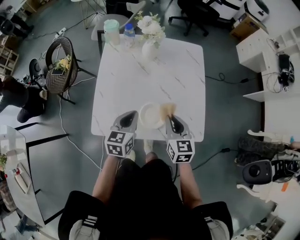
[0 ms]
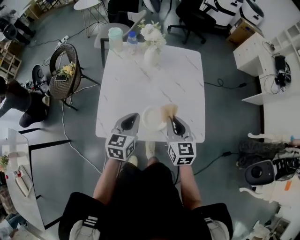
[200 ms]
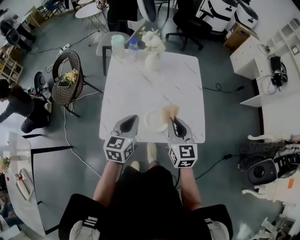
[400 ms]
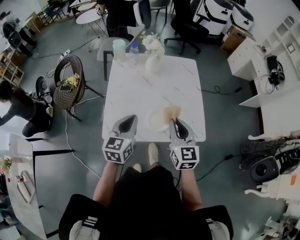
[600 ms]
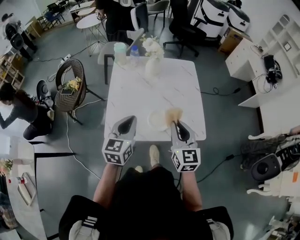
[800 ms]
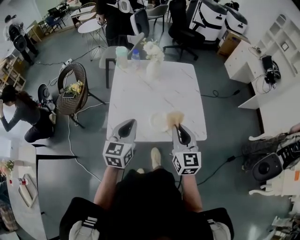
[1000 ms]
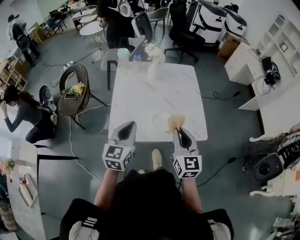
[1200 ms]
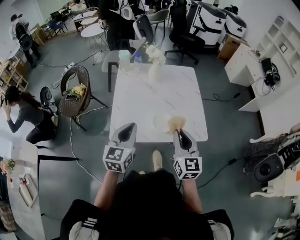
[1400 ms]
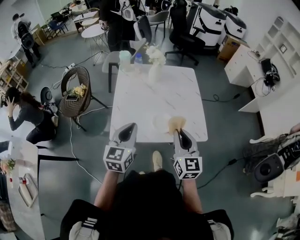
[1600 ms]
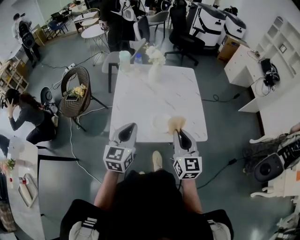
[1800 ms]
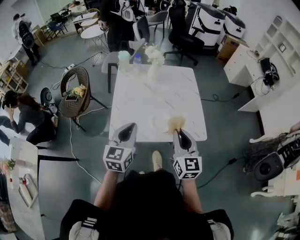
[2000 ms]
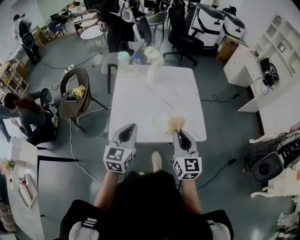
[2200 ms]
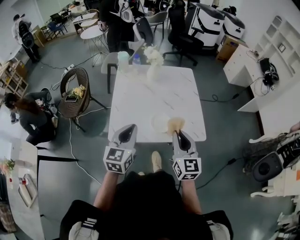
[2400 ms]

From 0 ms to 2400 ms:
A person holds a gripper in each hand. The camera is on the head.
From 0 ms to 1200 ms: The left gripper goes roughly 20 cm upward, backward and to the left. Meanwhile the right gripper moves backward and upward, about 20 cm, and changes its angle by roughly 20 degrees.
From 1200 ms to 2400 ms: The grippers make only small movements.

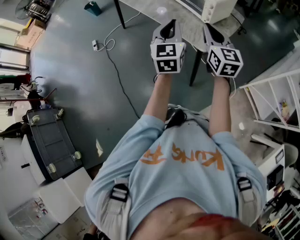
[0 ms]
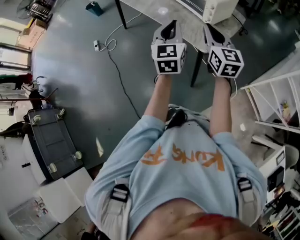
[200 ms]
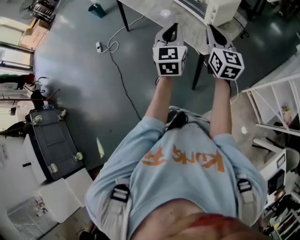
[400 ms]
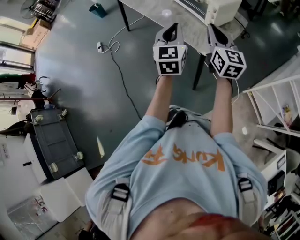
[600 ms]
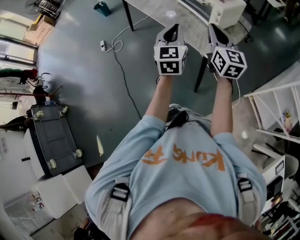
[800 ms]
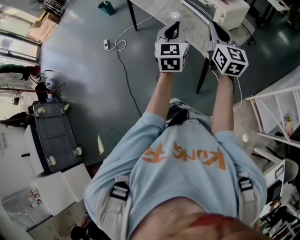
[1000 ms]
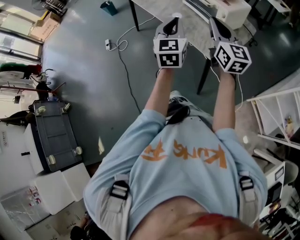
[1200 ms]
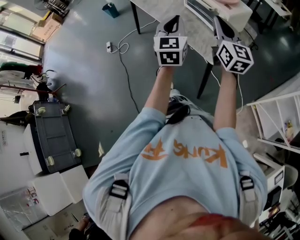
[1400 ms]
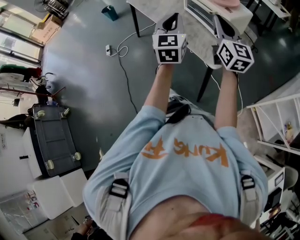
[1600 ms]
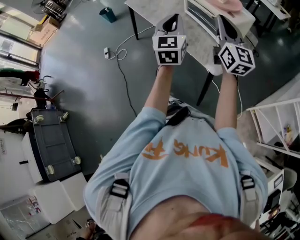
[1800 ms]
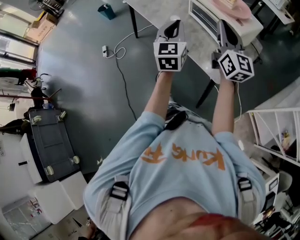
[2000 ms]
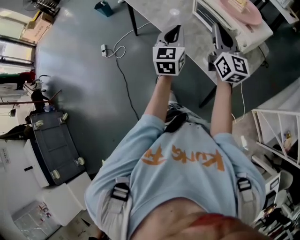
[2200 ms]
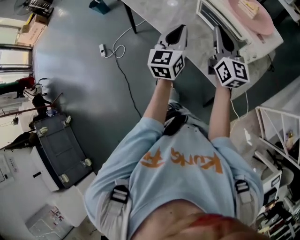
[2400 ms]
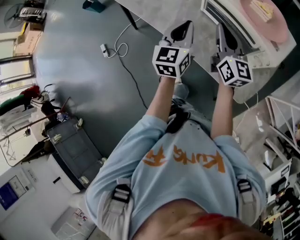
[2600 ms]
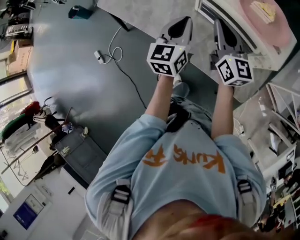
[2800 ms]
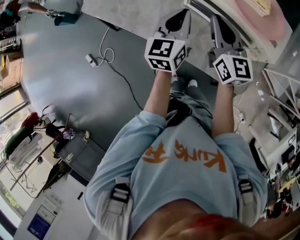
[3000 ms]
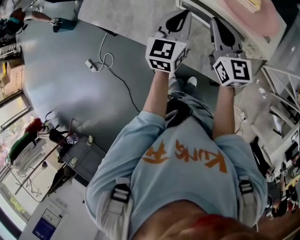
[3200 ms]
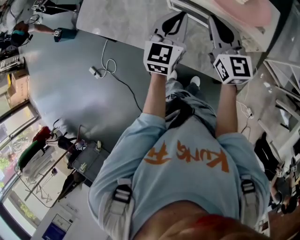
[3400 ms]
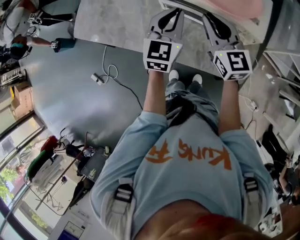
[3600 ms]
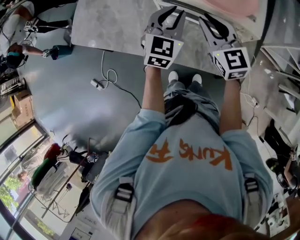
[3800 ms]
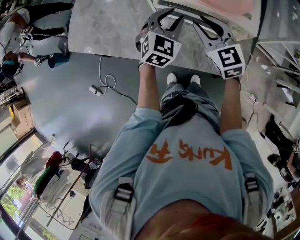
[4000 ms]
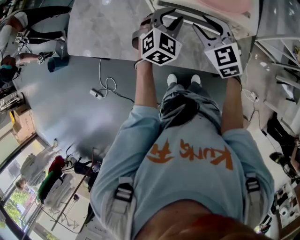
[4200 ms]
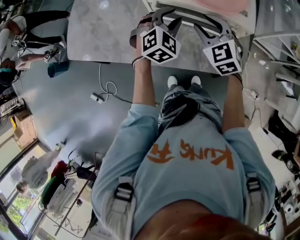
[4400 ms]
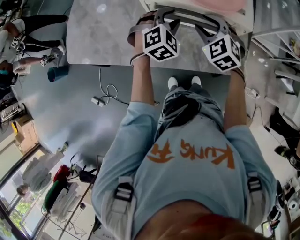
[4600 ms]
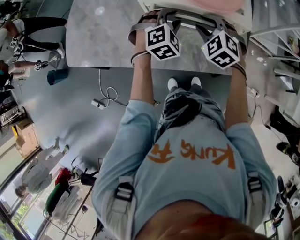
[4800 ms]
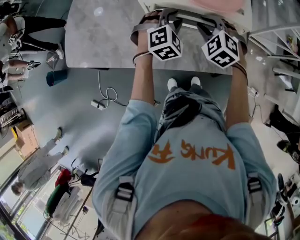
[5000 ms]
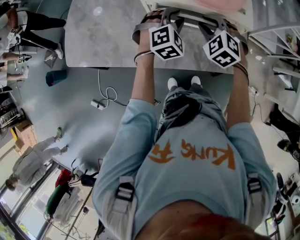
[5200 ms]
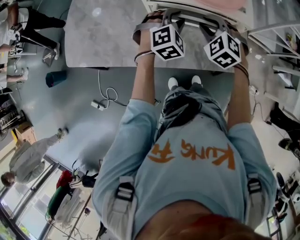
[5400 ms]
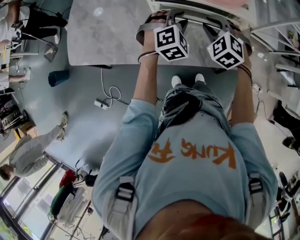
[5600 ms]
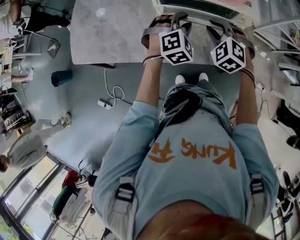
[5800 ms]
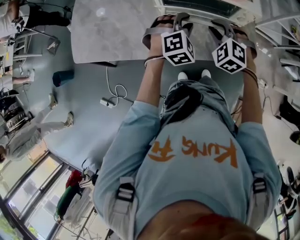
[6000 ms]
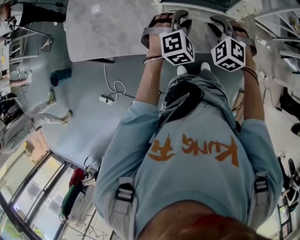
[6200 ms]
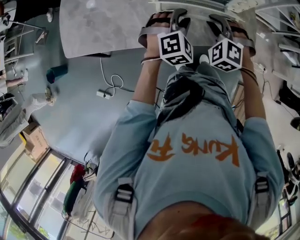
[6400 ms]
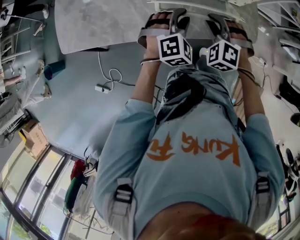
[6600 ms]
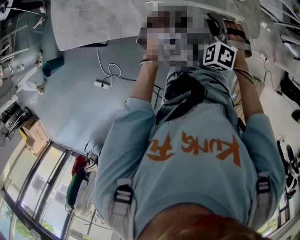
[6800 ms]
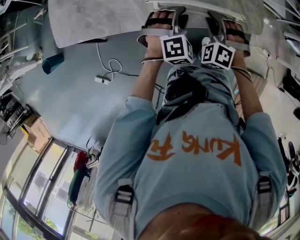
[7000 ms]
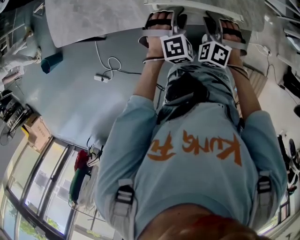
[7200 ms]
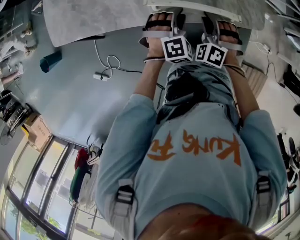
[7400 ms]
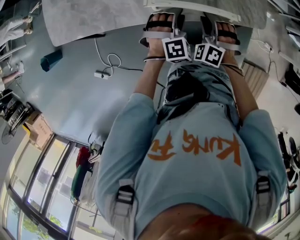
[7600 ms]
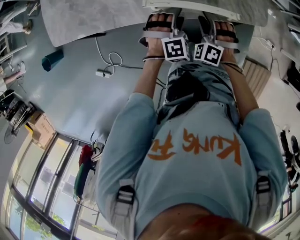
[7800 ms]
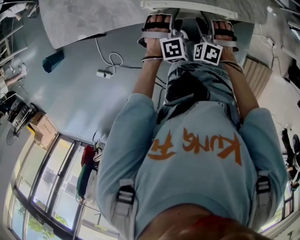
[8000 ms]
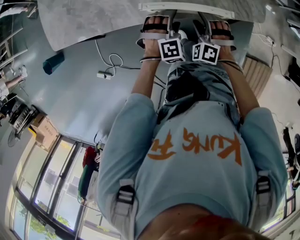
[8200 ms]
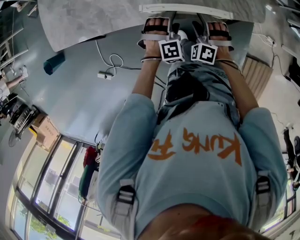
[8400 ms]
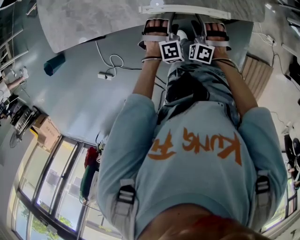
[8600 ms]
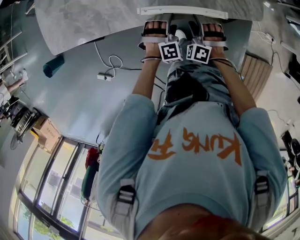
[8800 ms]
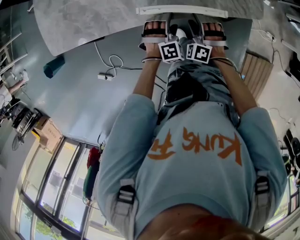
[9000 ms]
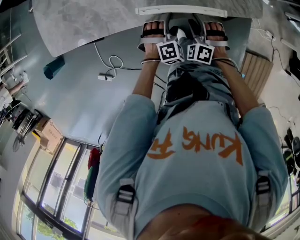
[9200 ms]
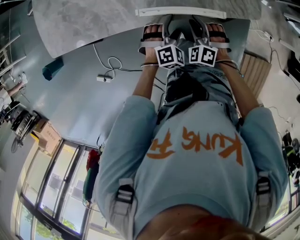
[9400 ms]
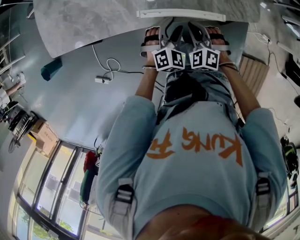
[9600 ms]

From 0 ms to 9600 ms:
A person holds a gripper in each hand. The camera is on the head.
From 0 ms to 1600 ms: The right gripper heads forward and upward, covering about 10 cm; the left gripper is displaced forward by roughly 5 cm.
From 1600 ms to 3200 ms: The left gripper ends up roughly 40 cm from where it was, and rotates about 40 degrees. The right gripper ends up roughly 40 cm from where it was, and changes its angle by some 20 degrees.
From 3200 ms to 4800 ms: The left gripper heads downward and to the right, covering some 10 cm, rolls clockwise, seen from behind, by roughly 60 degrees, and opens up. Meanwhile the right gripper heads downward, covering approximately 5 cm, angles its fingers downward, by some 40 degrees, and opens its fingers.
From 4800 ms to 6400 ms: The left gripper shifts some 10 cm backward; the right gripper goes roughly 10 cm backward and downward.
From 6400 ms to 8000 ms: The two grippers go some 20 cm downward and backward. The left gripper opens. The right gripper opens.
From 8000 ms to 9600 ms: The left gripper reaches approximately 5 cm downward, then returns, and turns by some 30 degrees. The right gripper closes its fingers.

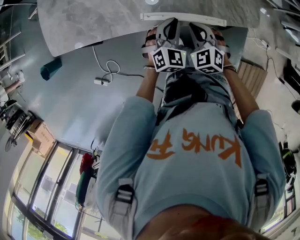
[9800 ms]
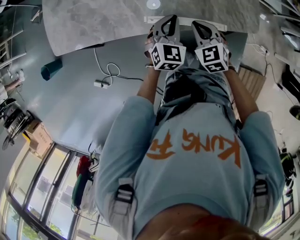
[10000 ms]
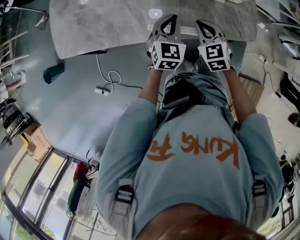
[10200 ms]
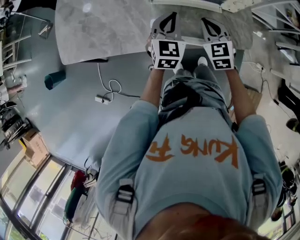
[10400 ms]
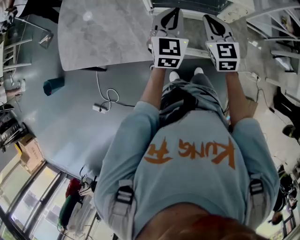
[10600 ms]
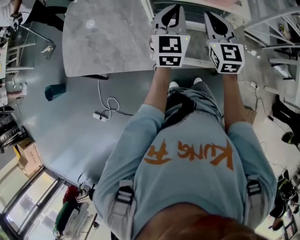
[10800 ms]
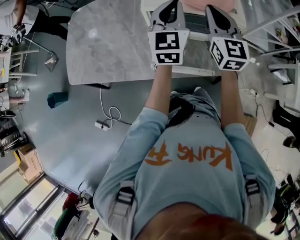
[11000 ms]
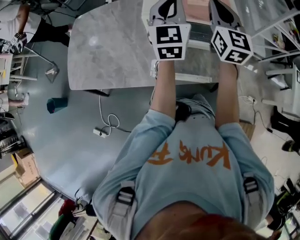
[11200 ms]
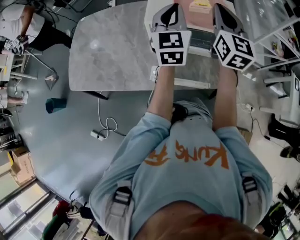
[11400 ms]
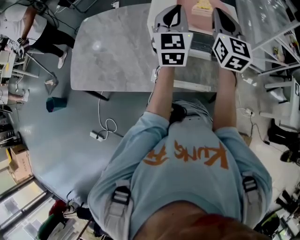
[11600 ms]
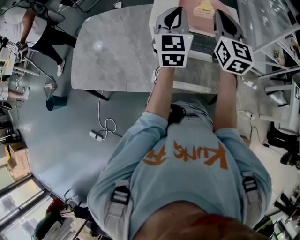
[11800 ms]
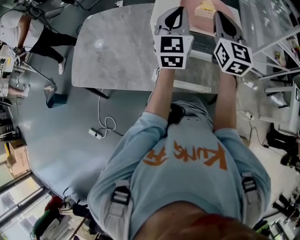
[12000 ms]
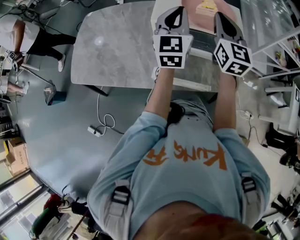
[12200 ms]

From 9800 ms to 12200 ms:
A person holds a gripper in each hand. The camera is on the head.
From 9800 ms to 11000 ms: Both grippers move upward and forward, some 35 cm. The right gripper tips its fingers upward by approximately 40 degrees. The left gripper tilts its fingers roughly 30 degrees upward.

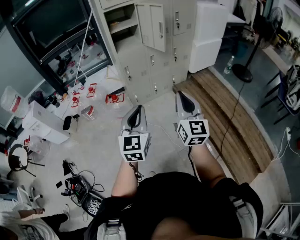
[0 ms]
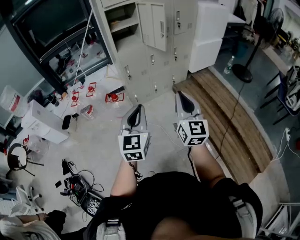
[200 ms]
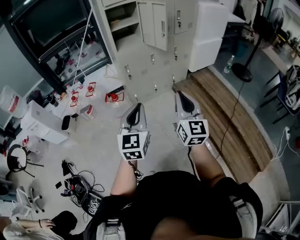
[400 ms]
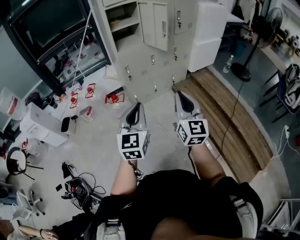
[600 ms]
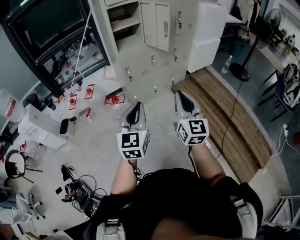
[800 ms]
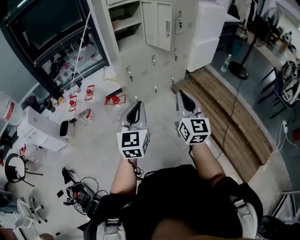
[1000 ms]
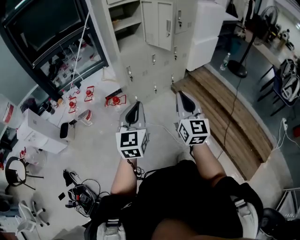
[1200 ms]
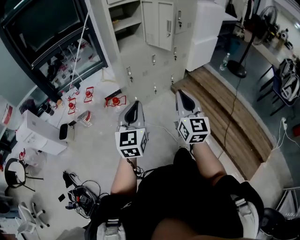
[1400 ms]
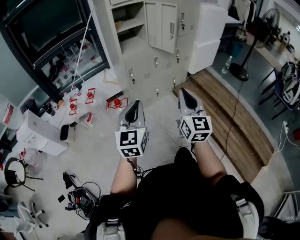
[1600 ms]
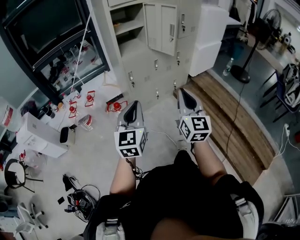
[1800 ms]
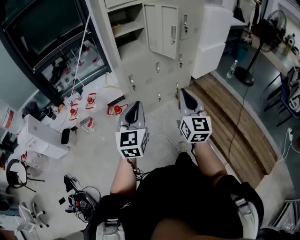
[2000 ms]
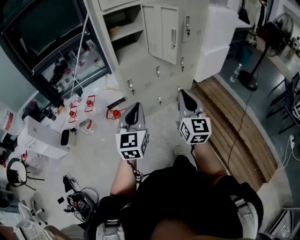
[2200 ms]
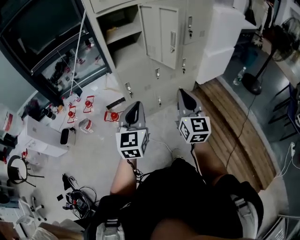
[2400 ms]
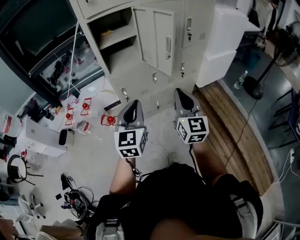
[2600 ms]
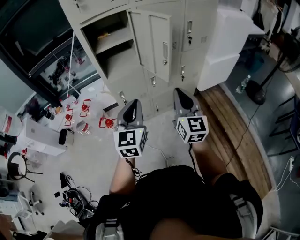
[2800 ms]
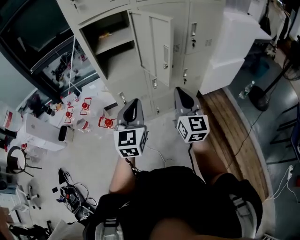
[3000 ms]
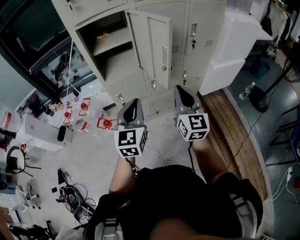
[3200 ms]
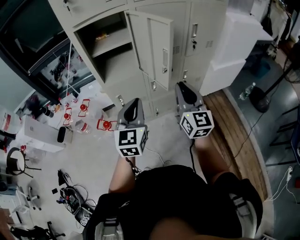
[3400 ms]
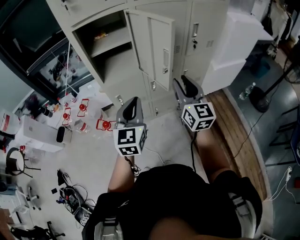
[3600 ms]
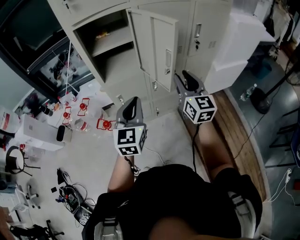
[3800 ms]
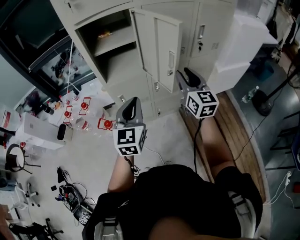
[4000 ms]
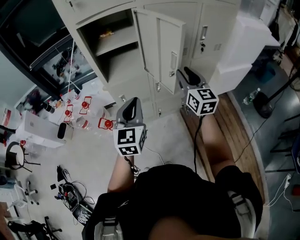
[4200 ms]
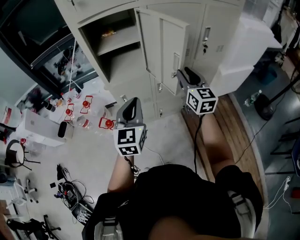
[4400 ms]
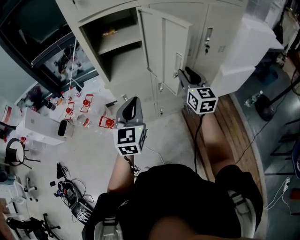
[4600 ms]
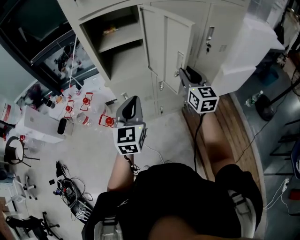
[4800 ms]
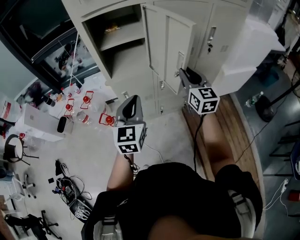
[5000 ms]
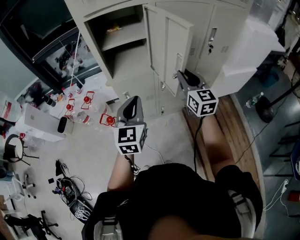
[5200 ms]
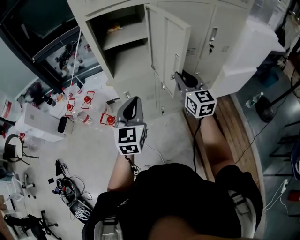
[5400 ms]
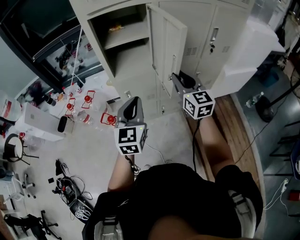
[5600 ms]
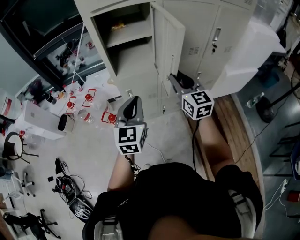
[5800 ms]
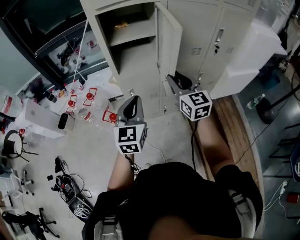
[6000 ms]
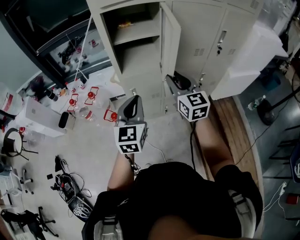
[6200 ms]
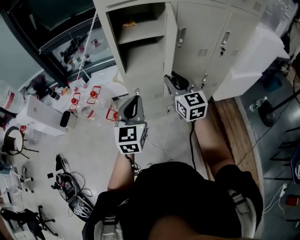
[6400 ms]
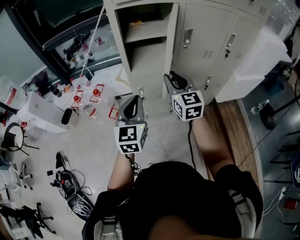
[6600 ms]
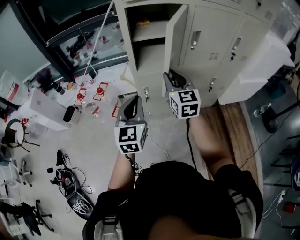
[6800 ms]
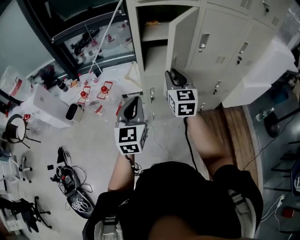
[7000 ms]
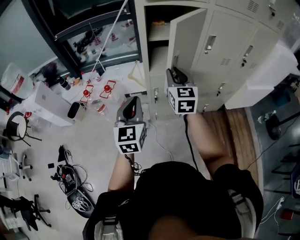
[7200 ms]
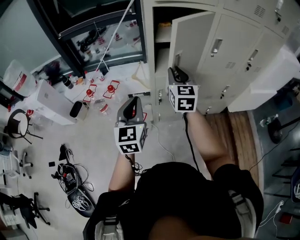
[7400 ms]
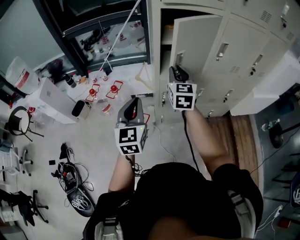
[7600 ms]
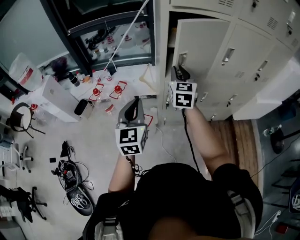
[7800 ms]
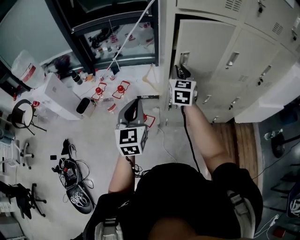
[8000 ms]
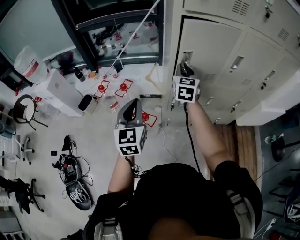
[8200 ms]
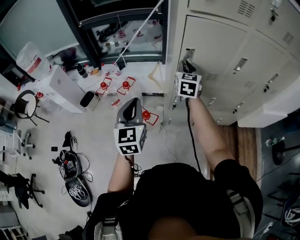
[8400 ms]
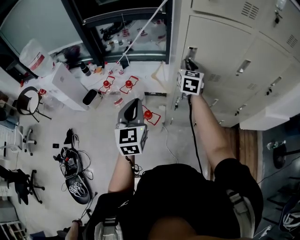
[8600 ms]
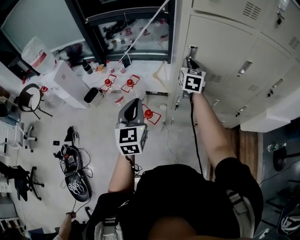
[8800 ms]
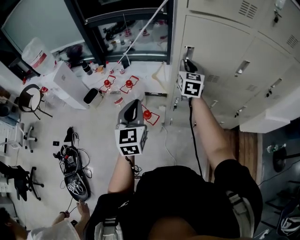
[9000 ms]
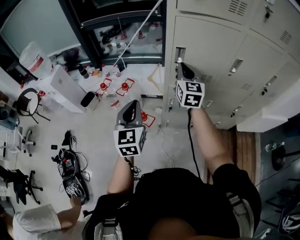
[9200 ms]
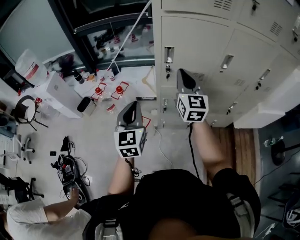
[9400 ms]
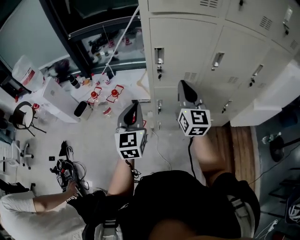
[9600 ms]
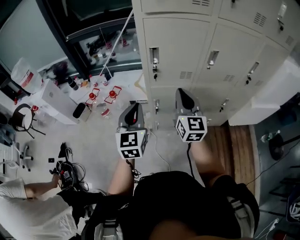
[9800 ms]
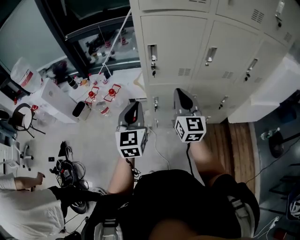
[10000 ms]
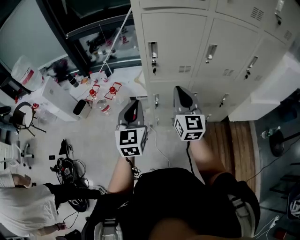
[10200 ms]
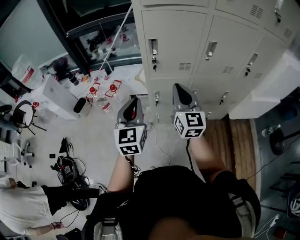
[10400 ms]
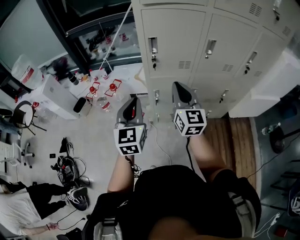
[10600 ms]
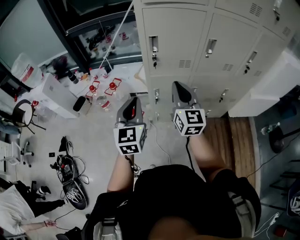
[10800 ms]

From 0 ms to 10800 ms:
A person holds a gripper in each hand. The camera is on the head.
From 0 ms to 1600 ms: Both grippers move to the left and forward, approximately 15 cm.
From 1600 ms to 3000 ms: The two grippers go some 40 cm forward and to the right.
From 3000 ms to 4600 ms: The right gripper goes approximately 20 cm forward, and opens its fingers. Meanwhile the left gripper shifts about 10 cm forward.
From 4600 ms to 6200 ms: The right gripper shifts about 15 cm to the left. The left gripper goes some 5 cm to the left.
From 6200 ms to 7800 ms: The right gripper moves to the left and forward, approximately 25 cm; the left gripper moves to the left, some 20 cm.
From 9200 ms to 10800 ms: The right gripper goes some 20 cm backward, while the left gripper moves to the right and backward, approximately 10 cm.